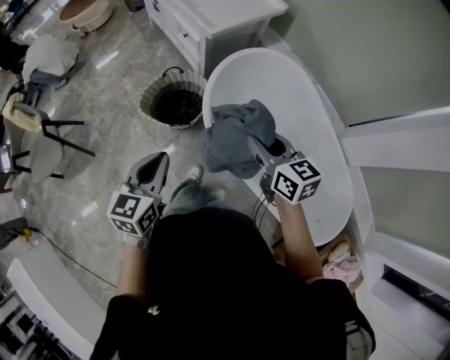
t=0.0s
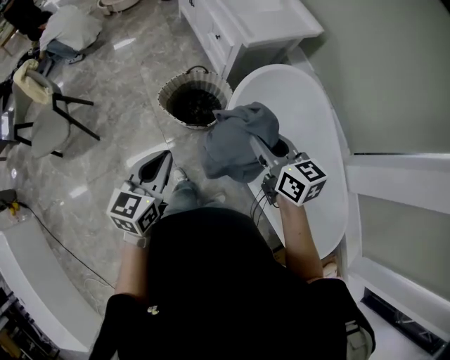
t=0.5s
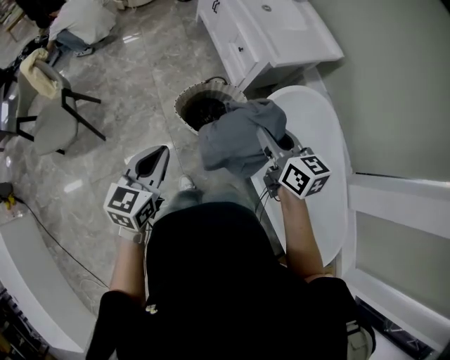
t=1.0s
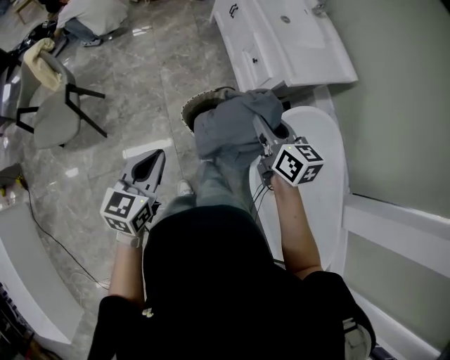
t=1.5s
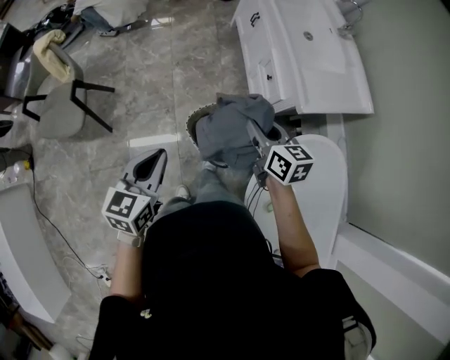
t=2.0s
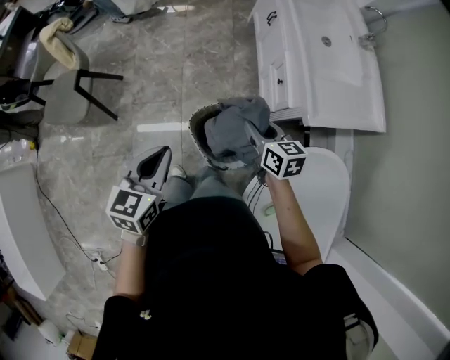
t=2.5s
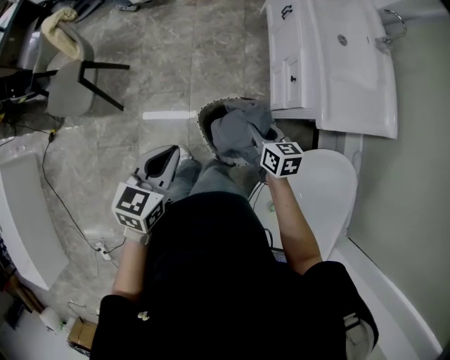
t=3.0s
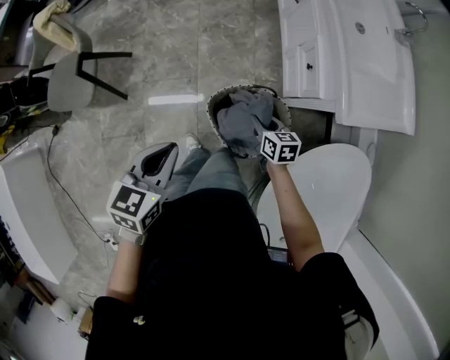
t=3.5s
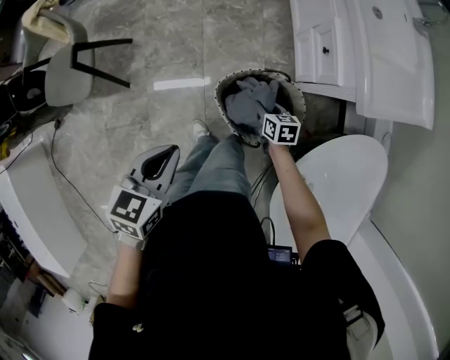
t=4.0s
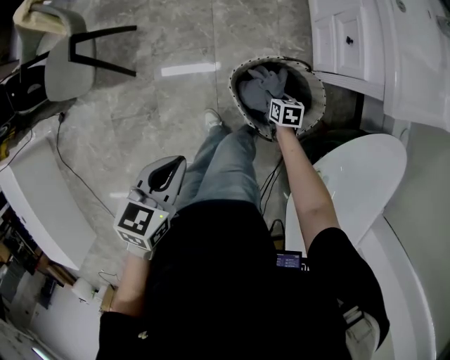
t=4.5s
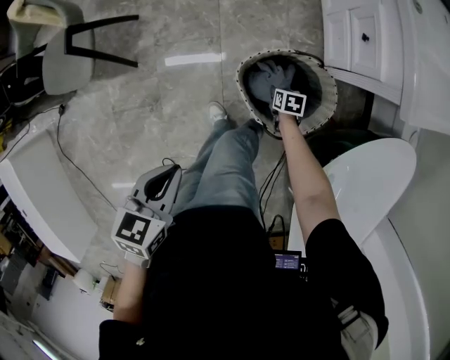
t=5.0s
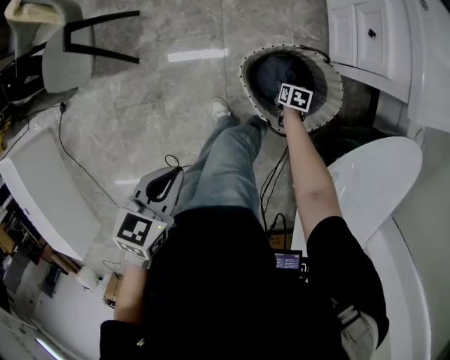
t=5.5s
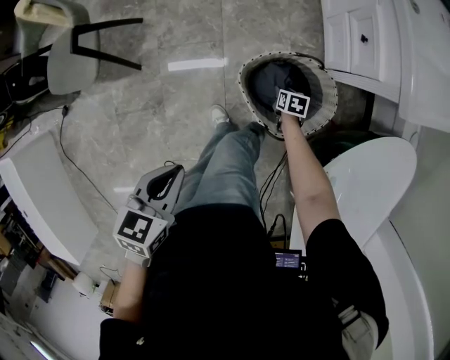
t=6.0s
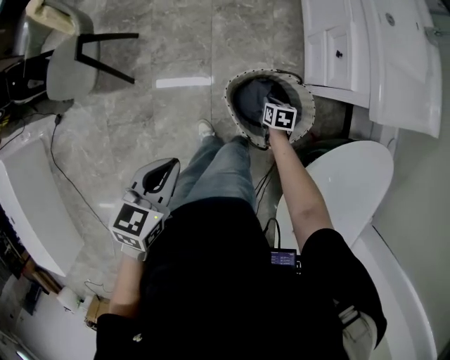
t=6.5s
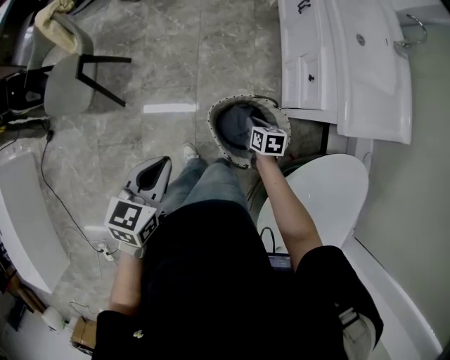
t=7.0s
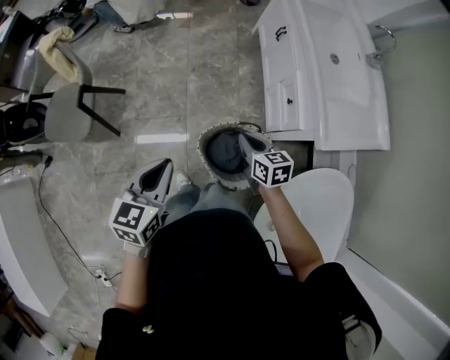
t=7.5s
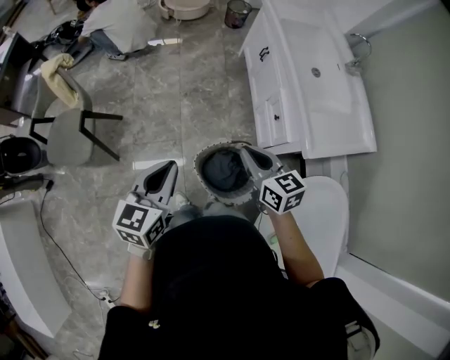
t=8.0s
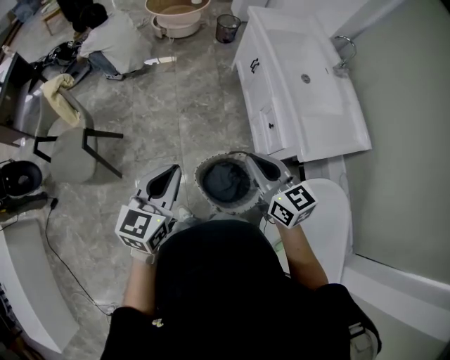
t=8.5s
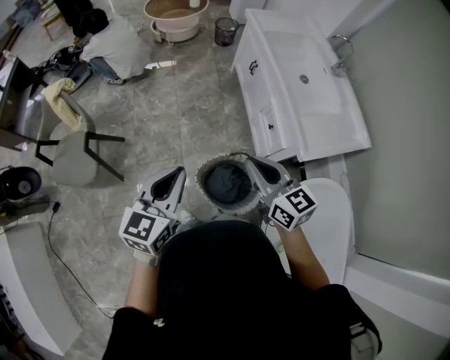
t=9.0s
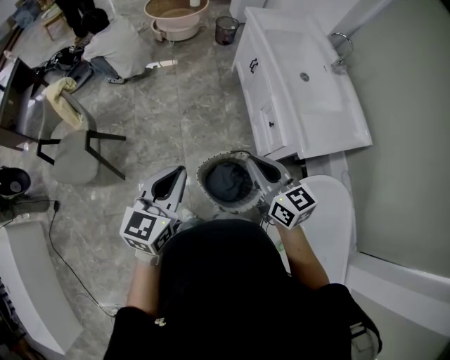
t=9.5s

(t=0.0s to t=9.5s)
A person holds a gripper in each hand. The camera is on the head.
t=0.0s - t=2.0s: The two grippers go about 40 cm forward and to the left. The left gripper swivels approximately 20 degrees. The right gripper turns by approximately 20 degrees.
t=2.0s - t=4.0s: The right gripper is displaced downward by roughly 40 cm, and turns by some 30 degrees; the left gripper moves downward, approximately 15 cm.
t=4.0s - t=5.5s: The left gripper travels downward, backward and to the left by some 15 cm, while the right gripper travels downward by some 25 cm, and turns by approximately 20 degrees.
t=5.5s - t=7.5s: The left gripper heads upward and forward, covering approximately 20 cm, and turns by roughly 30 degrees. The right gripper is displaced upward by about 50 cm, and tilts its fingers approximately 30 degrees upward.
t=7.5s - t=9.5s: The right gripper is displaced upward by some 25 cm, and rotates roughly 30 degrees; the left gripper travels upward and to the right by approximately 15 cm.

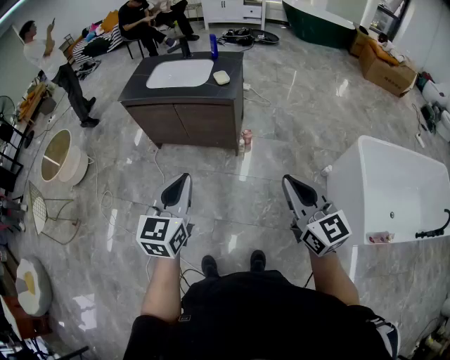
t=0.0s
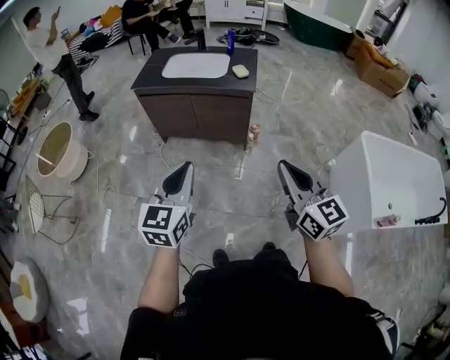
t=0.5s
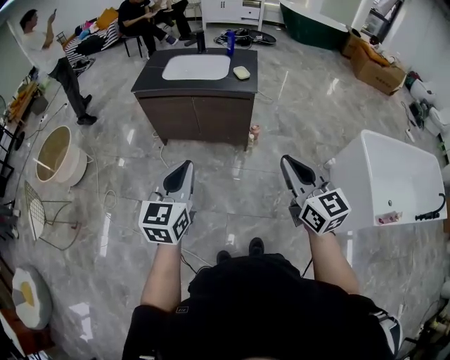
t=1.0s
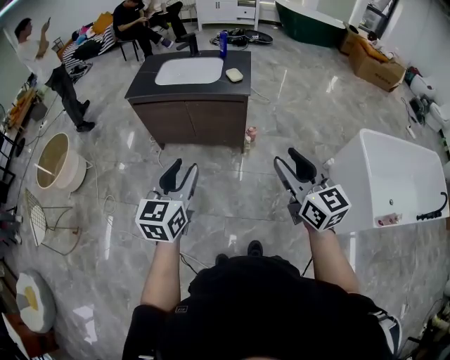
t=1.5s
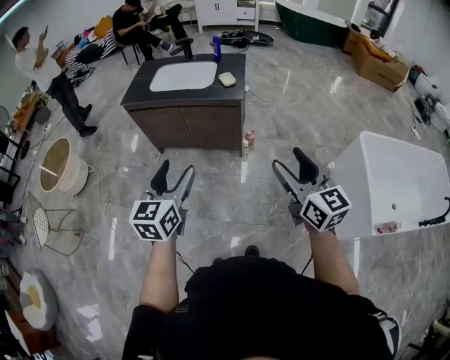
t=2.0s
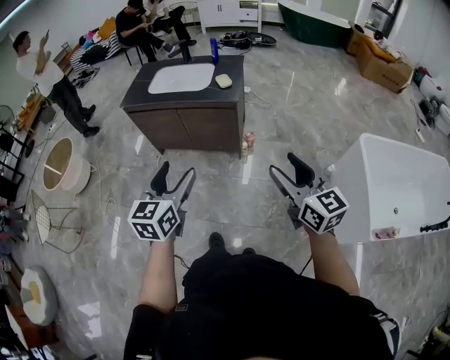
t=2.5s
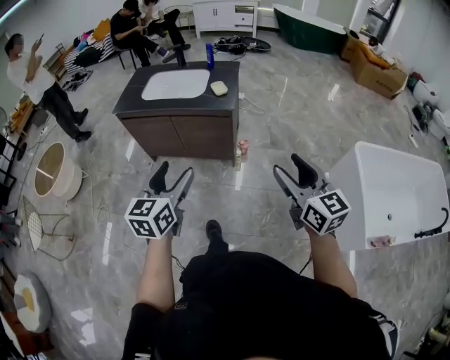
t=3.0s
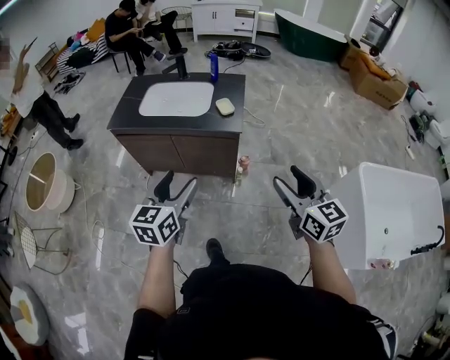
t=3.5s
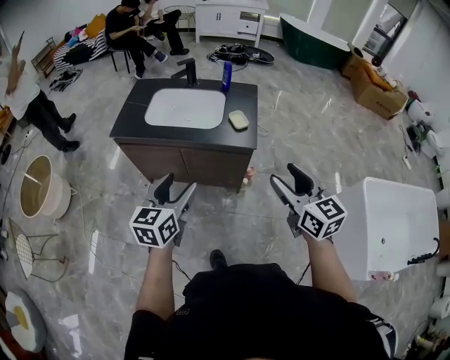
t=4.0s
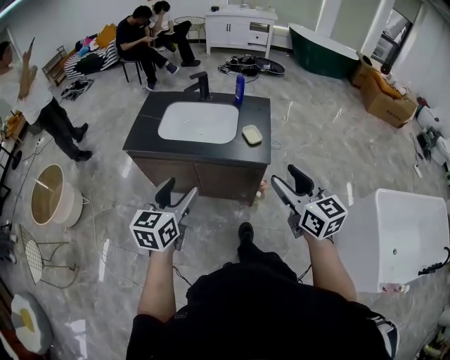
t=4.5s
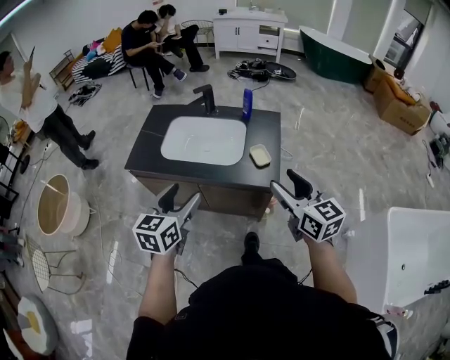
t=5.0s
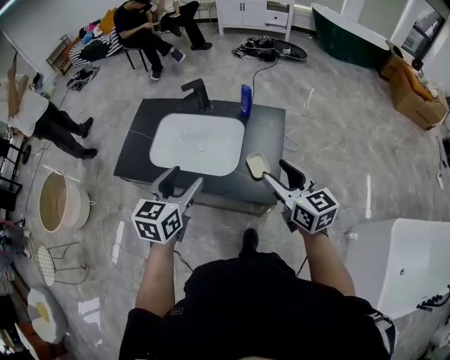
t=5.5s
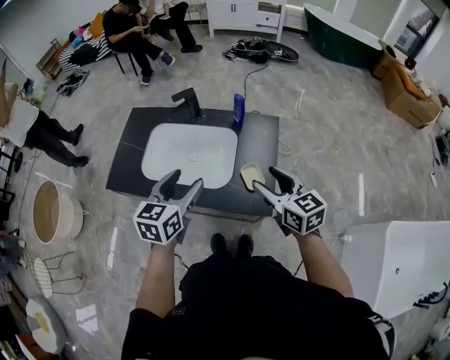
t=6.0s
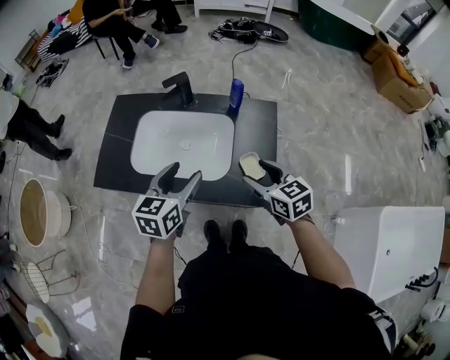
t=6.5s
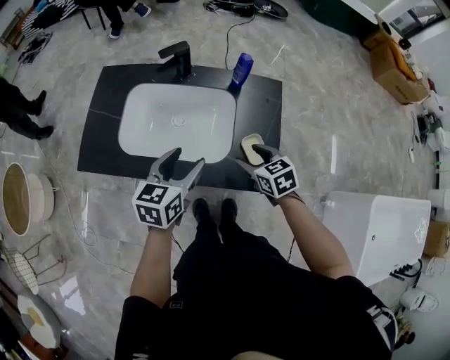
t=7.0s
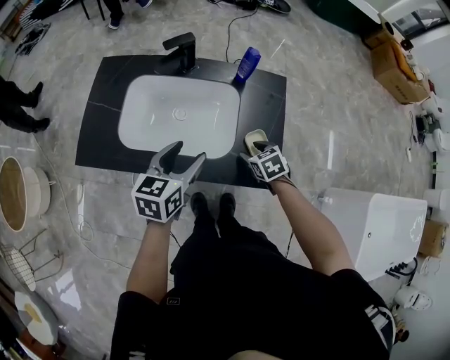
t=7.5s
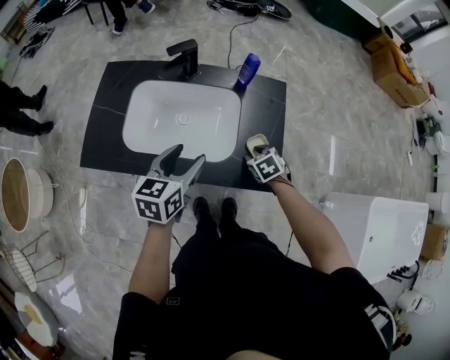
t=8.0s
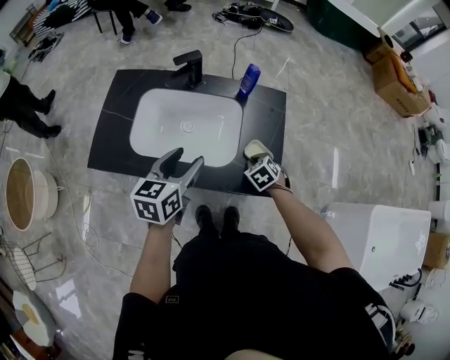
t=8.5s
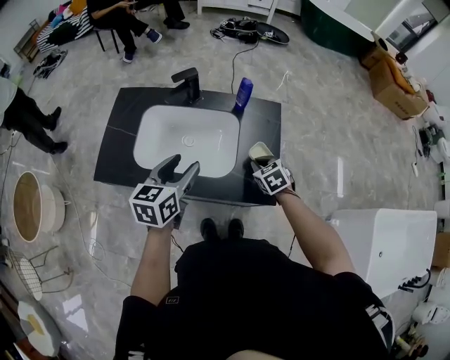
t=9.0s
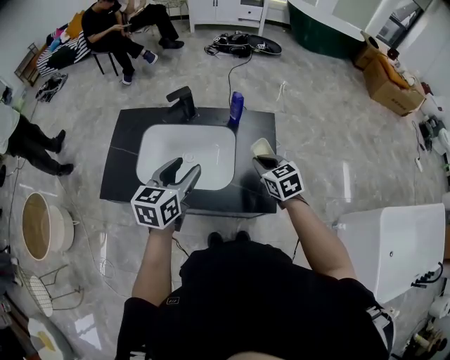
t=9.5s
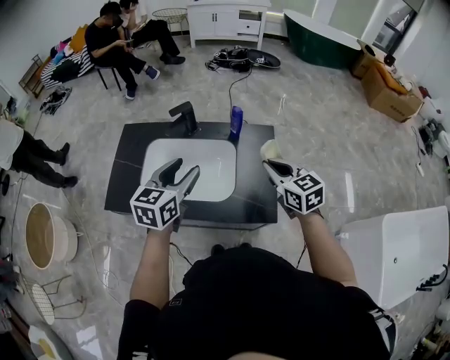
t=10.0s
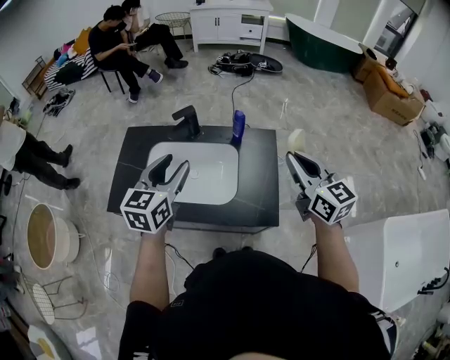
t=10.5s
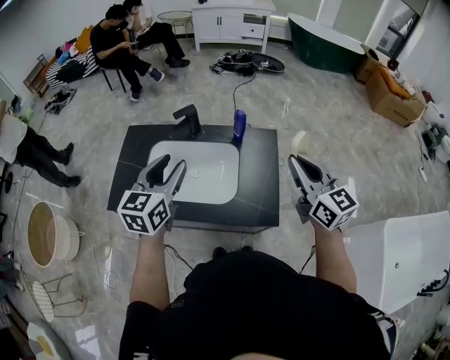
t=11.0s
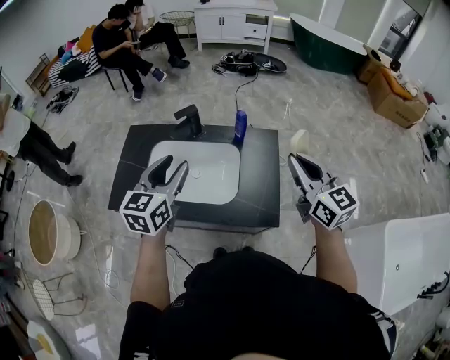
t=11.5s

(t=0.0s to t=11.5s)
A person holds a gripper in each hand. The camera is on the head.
t=0.0s - t=2.0s: The two grippers go about 10 cm to the left. The right gripper opens. Meanwhile the left gripper opens its fingers.
t=2.0s - t=4.0s: Both grippers move forward, roughly 25 cm.
t=4.0s - t=6.0s: Both grippers travel together forward, roughly 35 cm.
t=6.0s - t=7.5s: The right gripper goes about 25 cm downward, and points its fingers roughly 40 degrees further downward. Meanwhile the left gripper travels downward by some 10 cm.
t=7.5s - t=9.5s: The left gripper moves upward, approximately 10 cm, while the right gripper goes roughly 15 cm upward, swivels approximately 20 degrees, and closes up.
t=9.5s - t=11.5s: The right gripper goes approximately 20 cm upward, and tilts its fingers about 30 degrees upward, while the left gripper moves upward, roughly 10 cm.

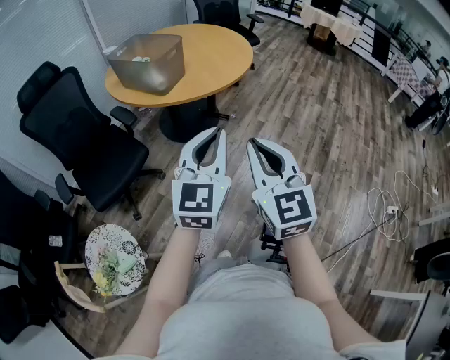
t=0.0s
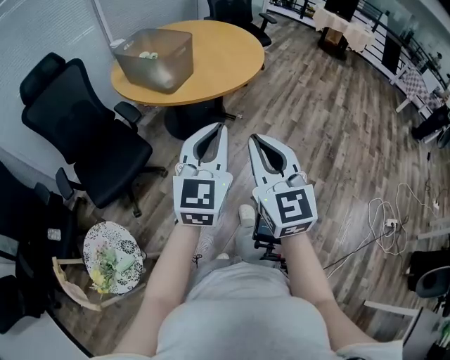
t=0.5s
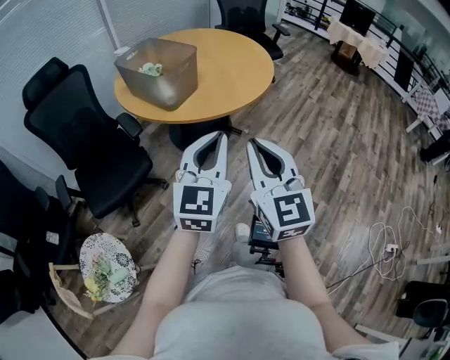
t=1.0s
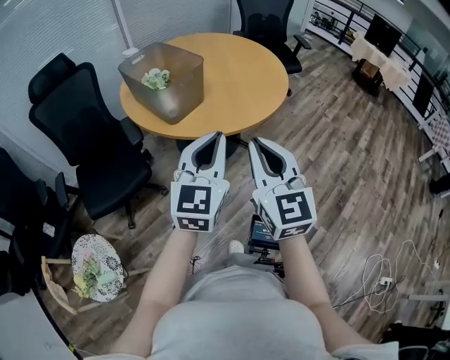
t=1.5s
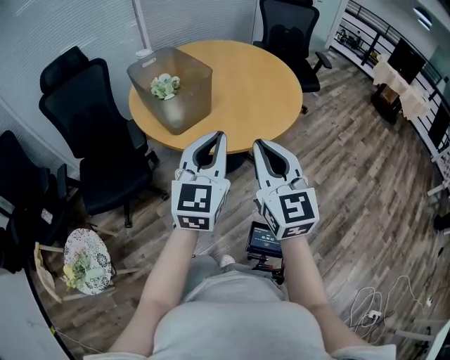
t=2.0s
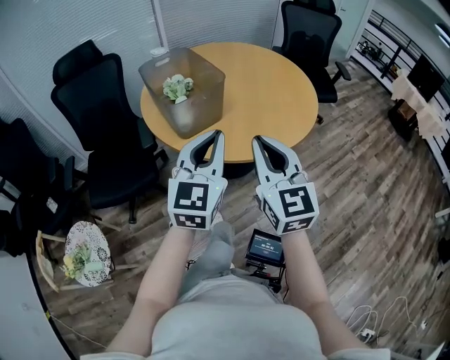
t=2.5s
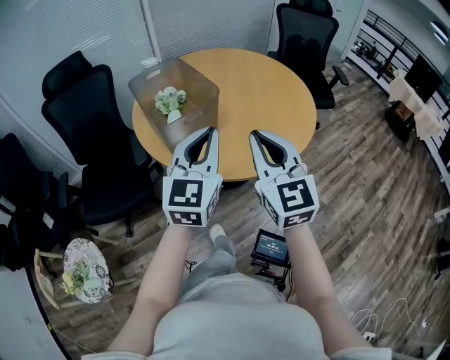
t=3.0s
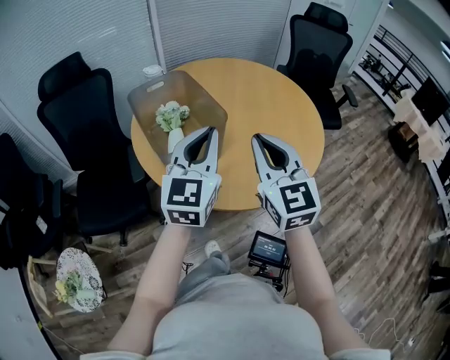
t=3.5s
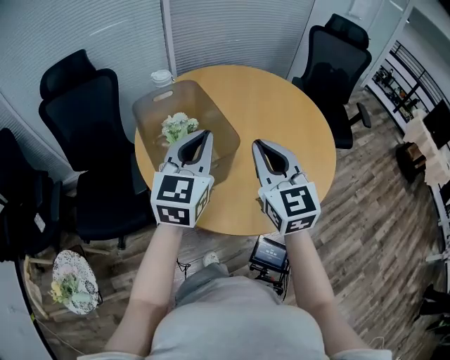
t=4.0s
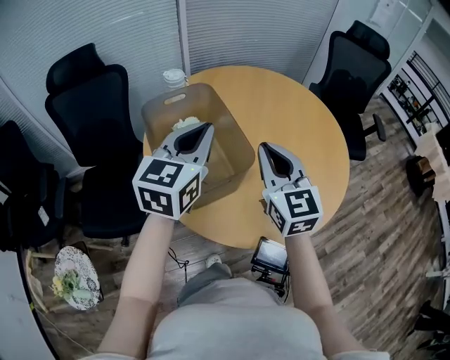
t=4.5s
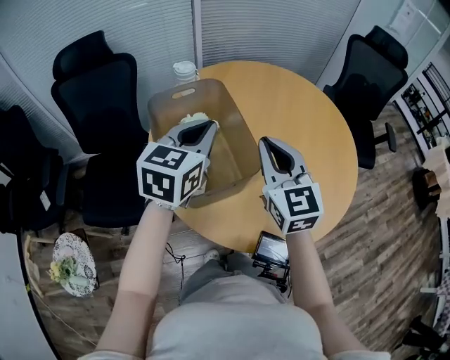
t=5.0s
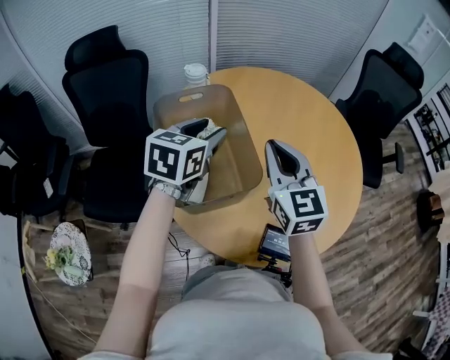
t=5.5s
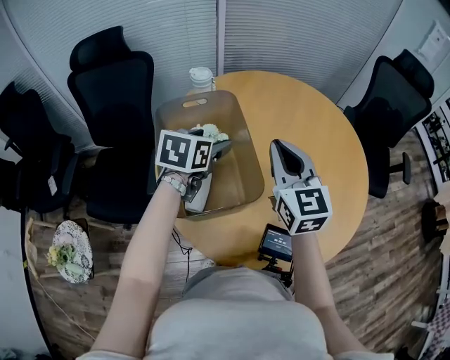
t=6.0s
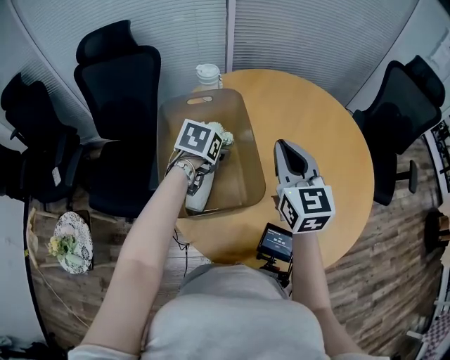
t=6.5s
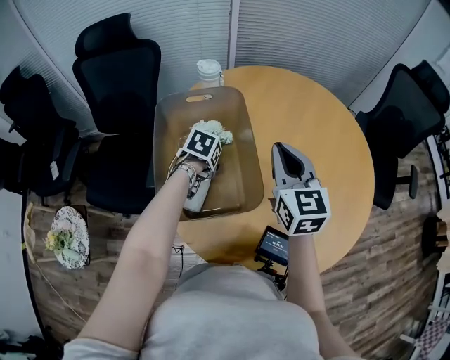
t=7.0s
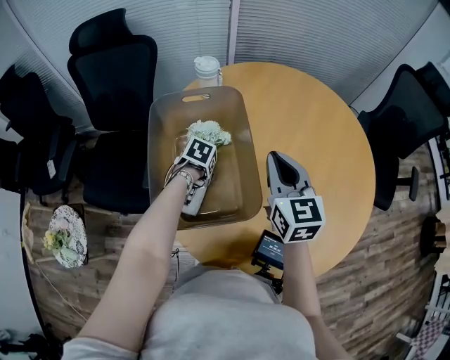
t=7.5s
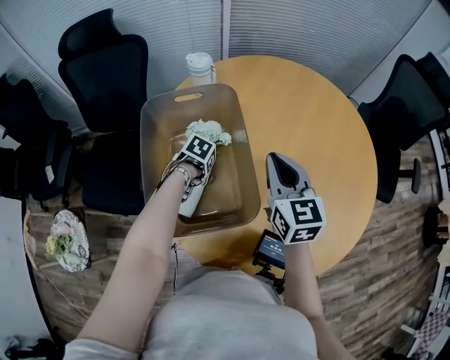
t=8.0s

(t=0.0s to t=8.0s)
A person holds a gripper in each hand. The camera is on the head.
t=0.0s - t=2.0s: The two grippers go about 35 cm forward. The left gripper swivels roughly 20 degrees. The right gripper changes its angle by roughly 20 degrees.
t=2.0s - t=4.0s: Both grippers travel together forward, about 35 cm.
t=4.0s - t=6.0s: The right gripper shifts about 15 cm forward; the left gripper goes approximately 20 cm forward and downward, tilts its fingers roughly 30 degrees downward, and opens up.
t=6.0s - t=8.0s: The left gripper moves downward, about 25 cm, and points its fingers about 40 degrees further downward, while the right gripper is displaced downward by approximately 10 cm.
